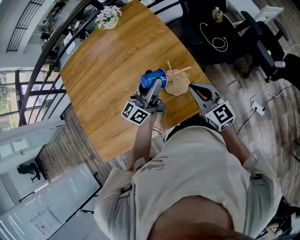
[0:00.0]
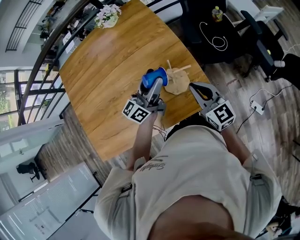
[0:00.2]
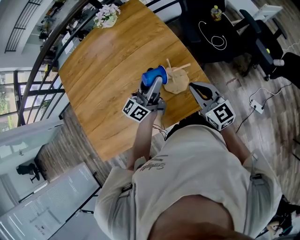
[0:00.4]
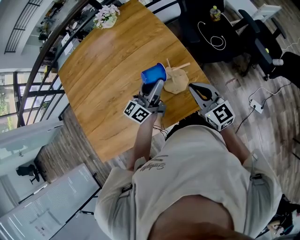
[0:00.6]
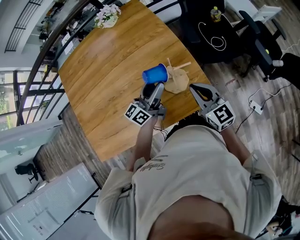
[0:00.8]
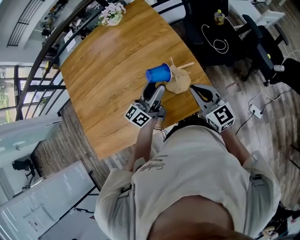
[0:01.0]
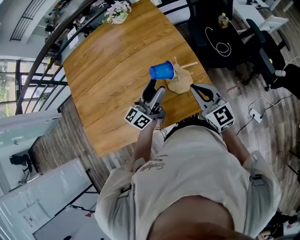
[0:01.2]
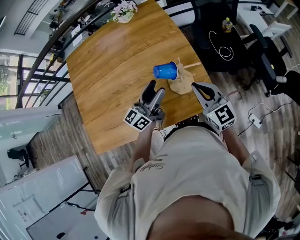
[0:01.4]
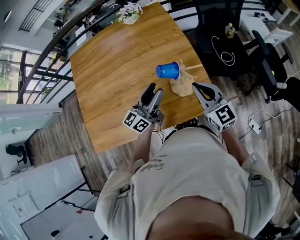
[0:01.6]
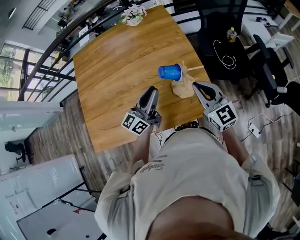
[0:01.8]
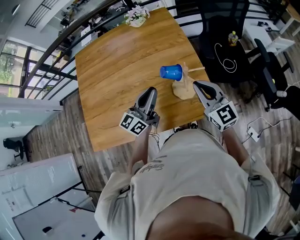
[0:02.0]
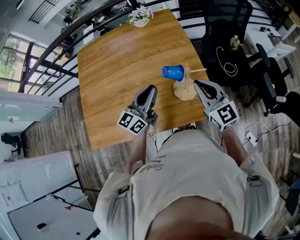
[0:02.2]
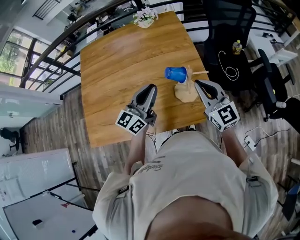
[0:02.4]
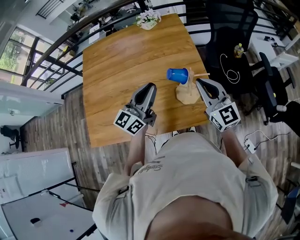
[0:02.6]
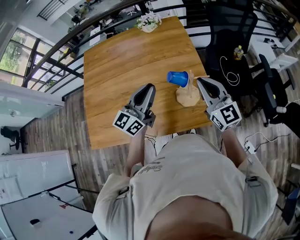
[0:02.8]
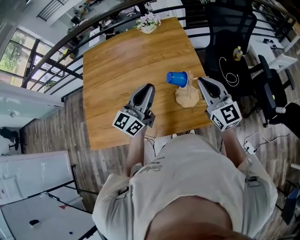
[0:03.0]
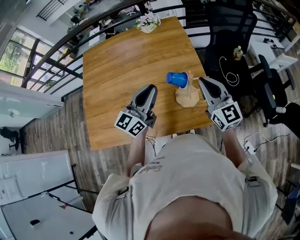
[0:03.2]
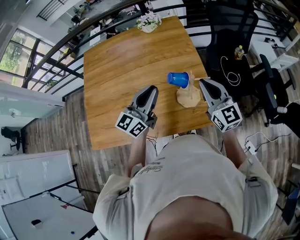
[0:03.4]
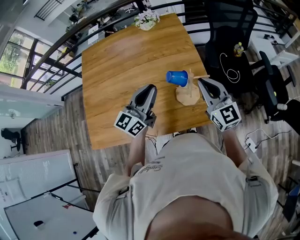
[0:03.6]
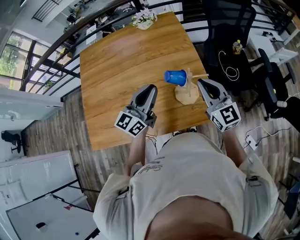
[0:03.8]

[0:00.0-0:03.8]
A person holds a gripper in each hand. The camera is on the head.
0:00.0 to 0:01.2: The left gripper heads backward, covering about 5 cm.
0:01.2 to 0:02.6: The left gripper goes approximately 10 cm upward and to the left, changes its angle by some 20 degrees, and closes up. The right gripper shifts approximately 10 cm upward.
0:02.6 to 0:03.8: The grippers stay close to where they were, moving slightly.

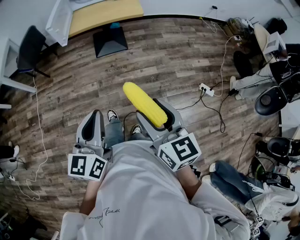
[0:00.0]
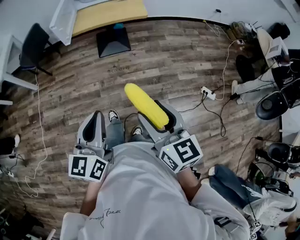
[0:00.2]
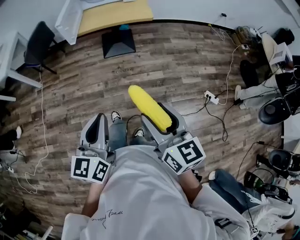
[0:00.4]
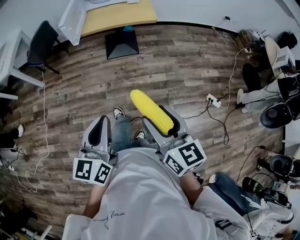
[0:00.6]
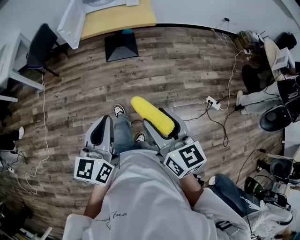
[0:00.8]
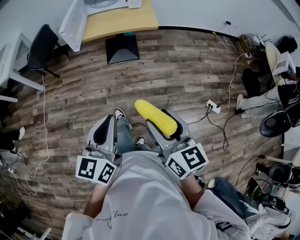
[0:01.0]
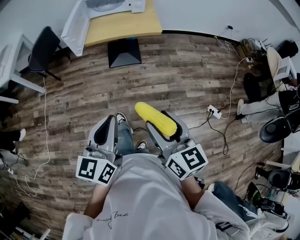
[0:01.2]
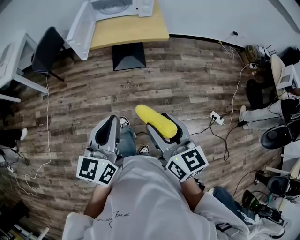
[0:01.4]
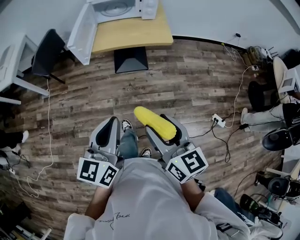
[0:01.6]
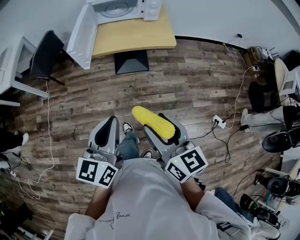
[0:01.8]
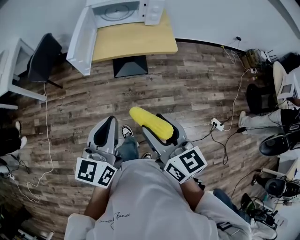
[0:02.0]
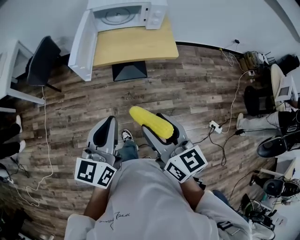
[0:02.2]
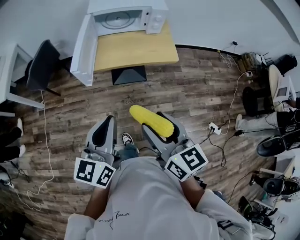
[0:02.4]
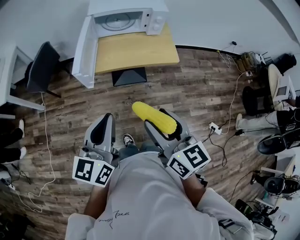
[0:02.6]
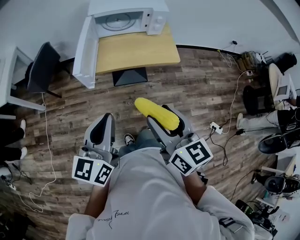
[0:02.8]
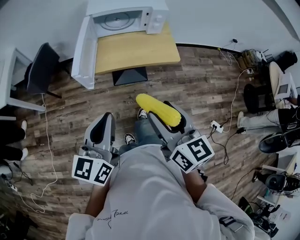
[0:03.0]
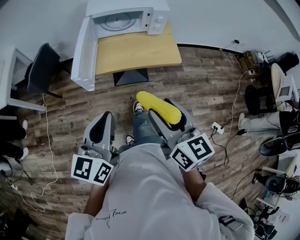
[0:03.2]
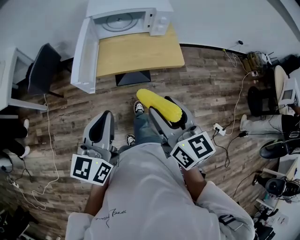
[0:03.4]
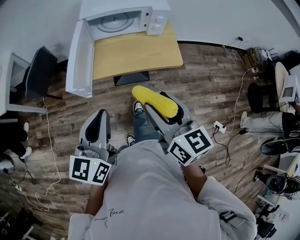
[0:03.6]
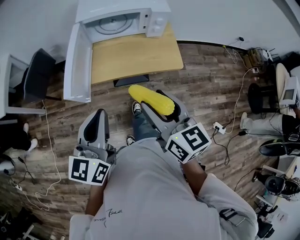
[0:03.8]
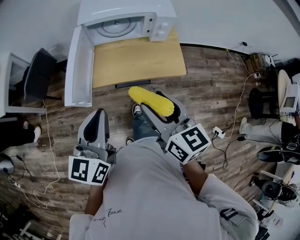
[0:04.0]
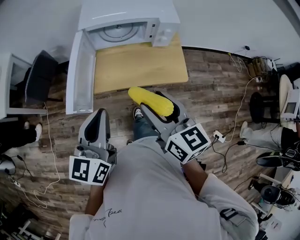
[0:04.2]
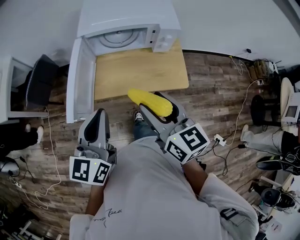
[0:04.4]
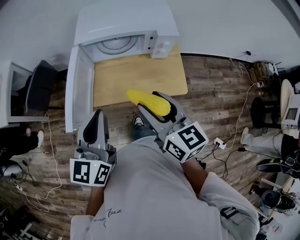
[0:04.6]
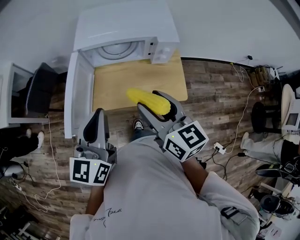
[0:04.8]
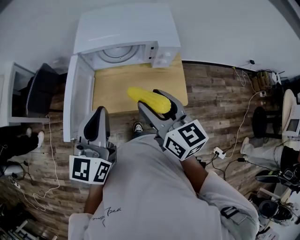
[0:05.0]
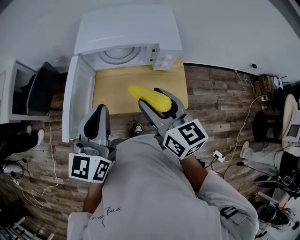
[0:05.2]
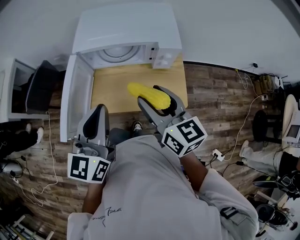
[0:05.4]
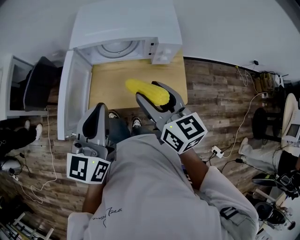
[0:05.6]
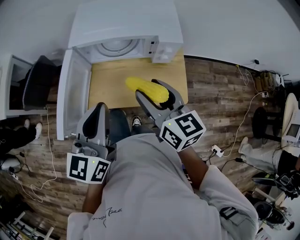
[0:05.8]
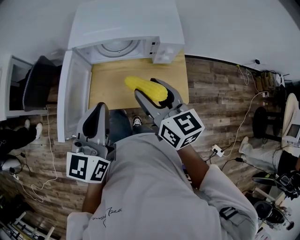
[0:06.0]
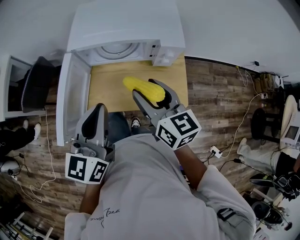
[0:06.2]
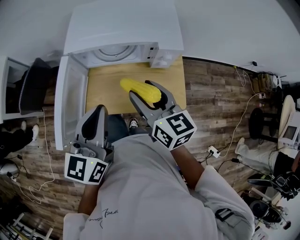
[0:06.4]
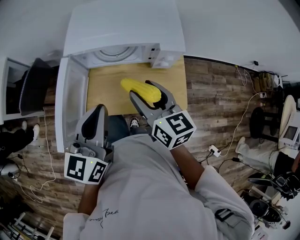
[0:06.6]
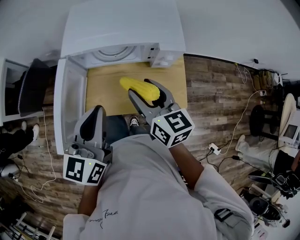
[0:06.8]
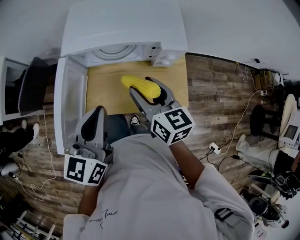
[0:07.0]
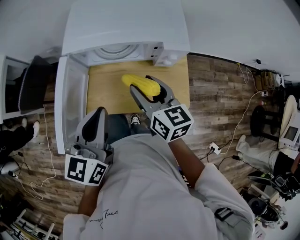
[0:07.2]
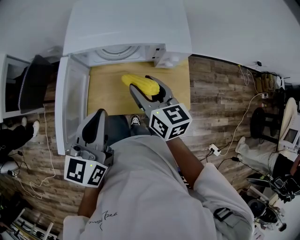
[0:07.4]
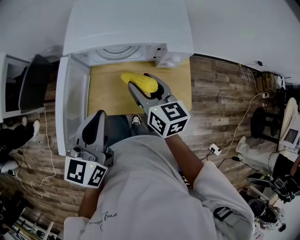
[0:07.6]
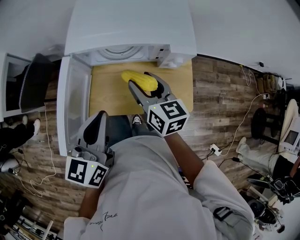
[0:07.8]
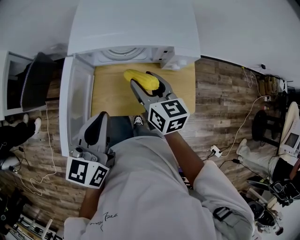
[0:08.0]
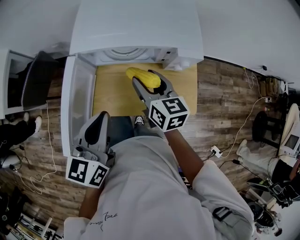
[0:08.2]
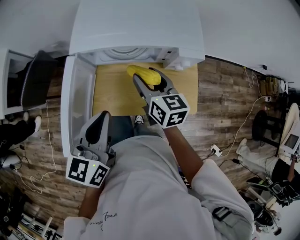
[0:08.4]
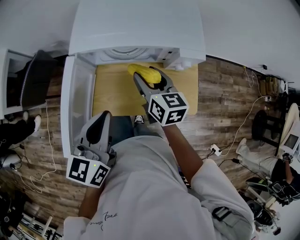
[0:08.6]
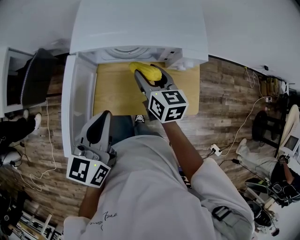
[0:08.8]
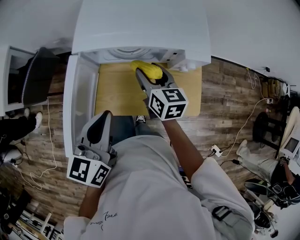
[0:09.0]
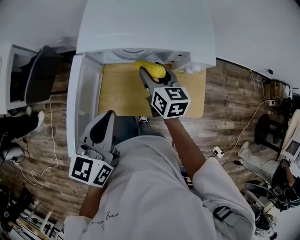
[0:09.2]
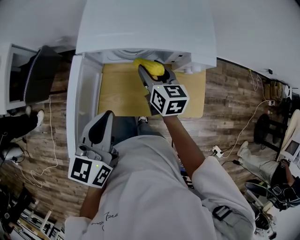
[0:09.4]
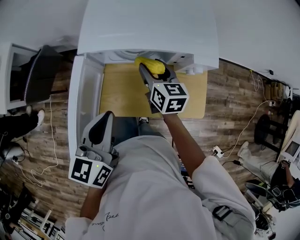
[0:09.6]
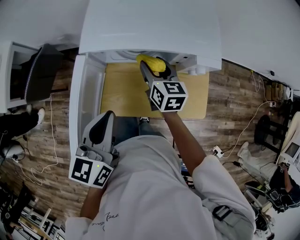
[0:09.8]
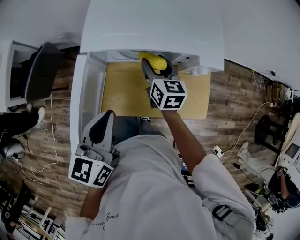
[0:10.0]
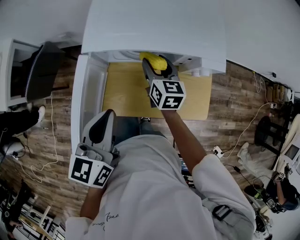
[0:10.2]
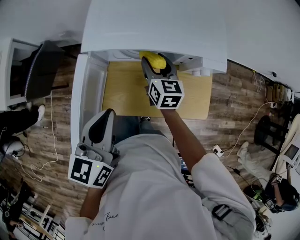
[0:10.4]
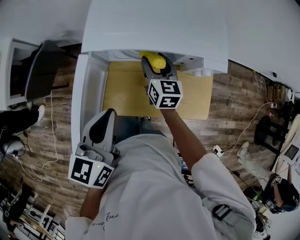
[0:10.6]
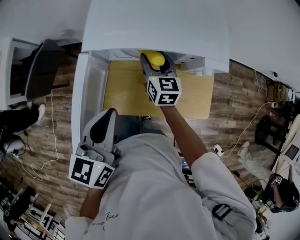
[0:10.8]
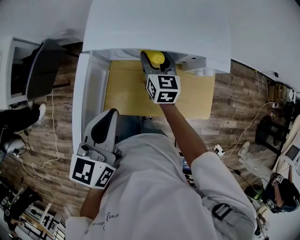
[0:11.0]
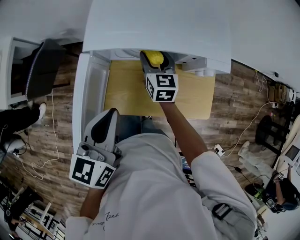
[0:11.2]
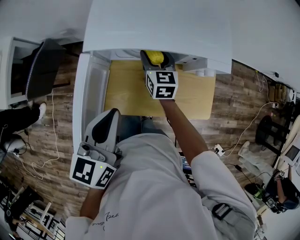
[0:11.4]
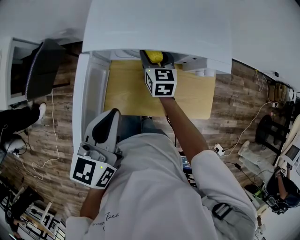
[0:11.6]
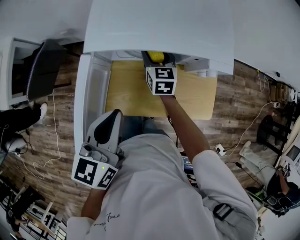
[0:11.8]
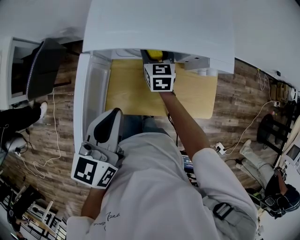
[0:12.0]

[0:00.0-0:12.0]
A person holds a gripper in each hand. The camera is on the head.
0:00.0 to 0:01.6: Both grippers move forward, some 15 cm.
0:01.6 to 0:03.0: The right gripper moves forward, some 20 cm. The left gripper moves forward and to the left, roughly 20 cm.
0:03.0 to 0:04.4: Both grippers travel together forward, roughly 25 cm.
0:04.4 to 0:06.0: The left gripper moves forward and to the right, about 10 cm. Meanwhile the right gripper shifts some 15 cm forward.
0:06.0 to 0:07.6: The right gripper shifts about 10 cm forward and downward, while the left gripper ends up roughly 5 cm from where it was.
0:07.6 to 0:09.0: The right gripper heads forward and downward, covering approximately 10 cm.
0:09.0 to 0:10.4: The right gripper shifts about 5 cm forward.
0:10.4 to 0:12.0: The right gripper goes about 5 cm forward.

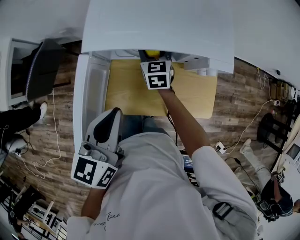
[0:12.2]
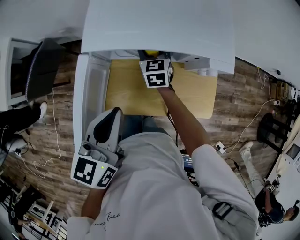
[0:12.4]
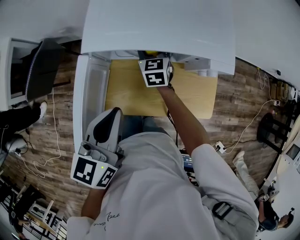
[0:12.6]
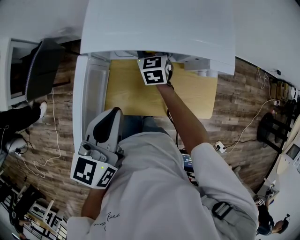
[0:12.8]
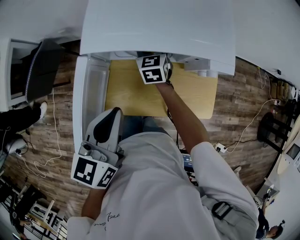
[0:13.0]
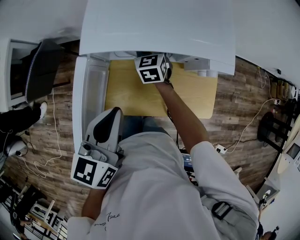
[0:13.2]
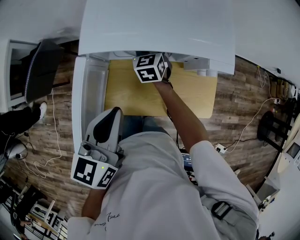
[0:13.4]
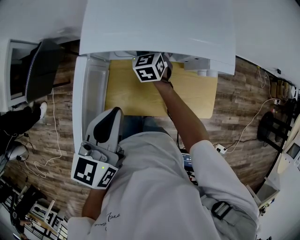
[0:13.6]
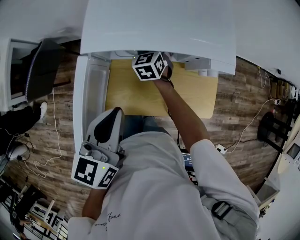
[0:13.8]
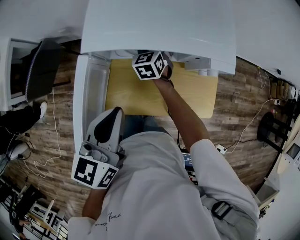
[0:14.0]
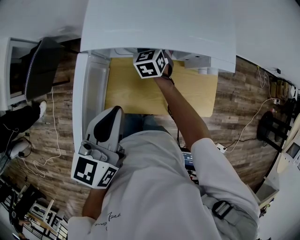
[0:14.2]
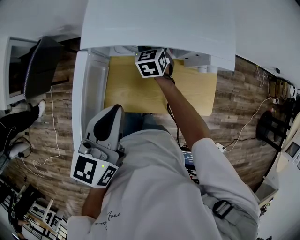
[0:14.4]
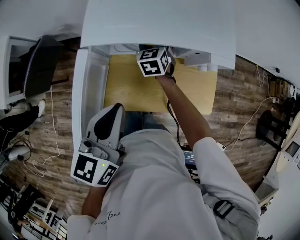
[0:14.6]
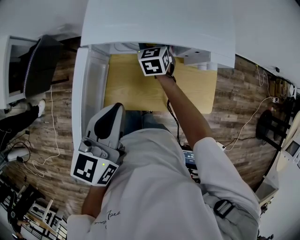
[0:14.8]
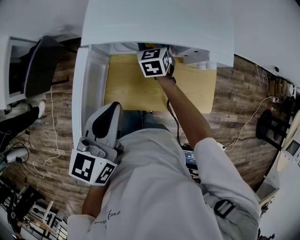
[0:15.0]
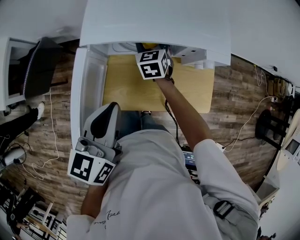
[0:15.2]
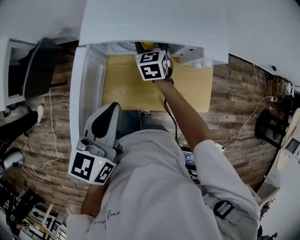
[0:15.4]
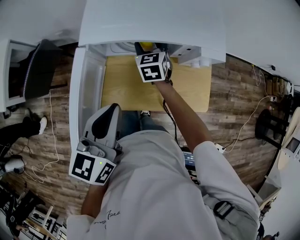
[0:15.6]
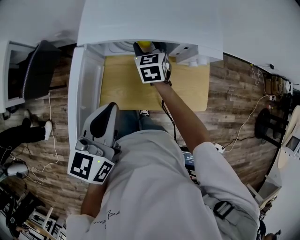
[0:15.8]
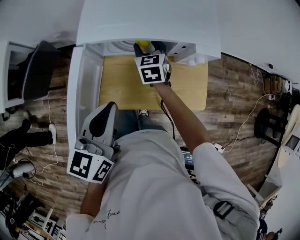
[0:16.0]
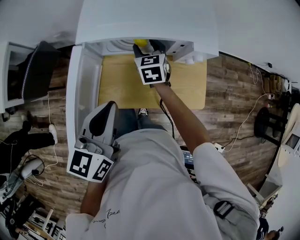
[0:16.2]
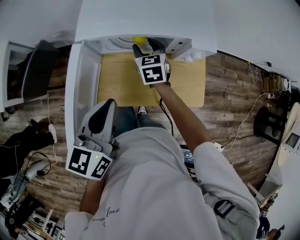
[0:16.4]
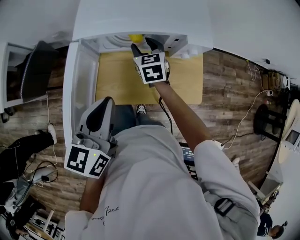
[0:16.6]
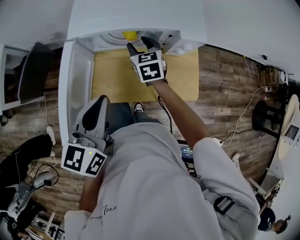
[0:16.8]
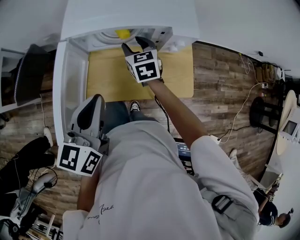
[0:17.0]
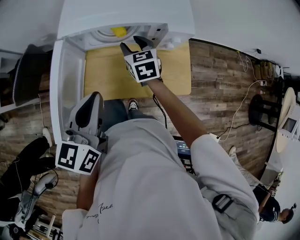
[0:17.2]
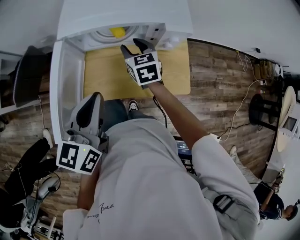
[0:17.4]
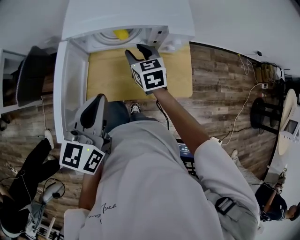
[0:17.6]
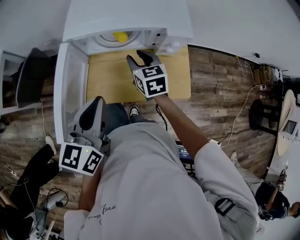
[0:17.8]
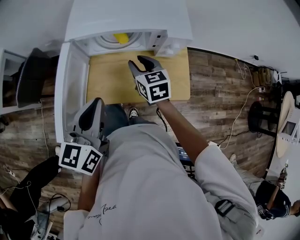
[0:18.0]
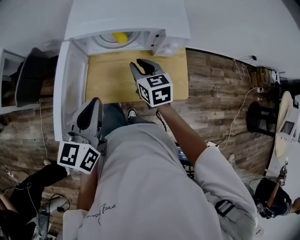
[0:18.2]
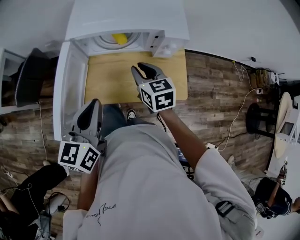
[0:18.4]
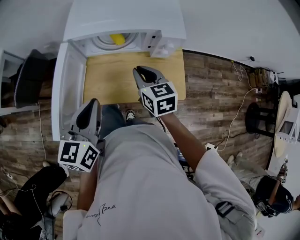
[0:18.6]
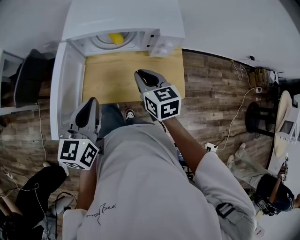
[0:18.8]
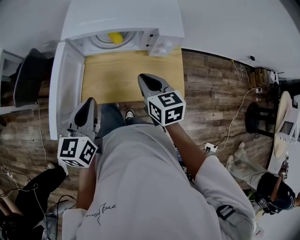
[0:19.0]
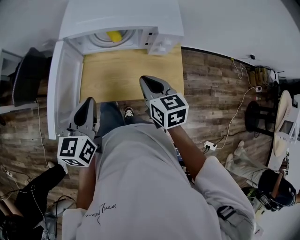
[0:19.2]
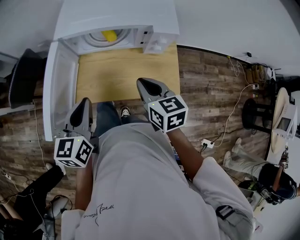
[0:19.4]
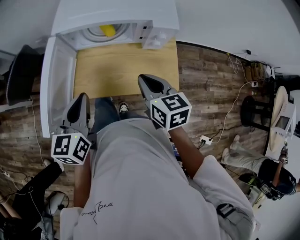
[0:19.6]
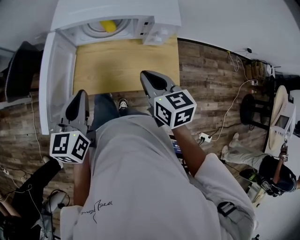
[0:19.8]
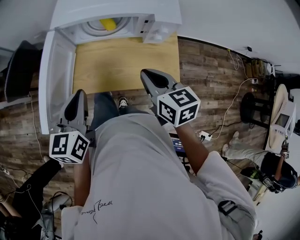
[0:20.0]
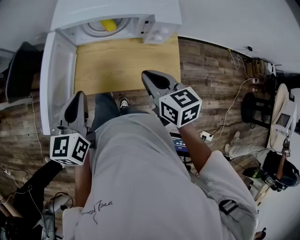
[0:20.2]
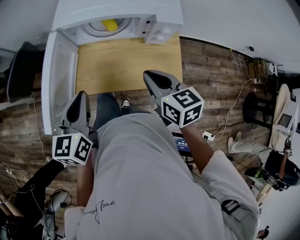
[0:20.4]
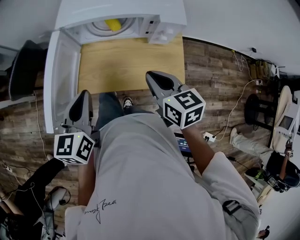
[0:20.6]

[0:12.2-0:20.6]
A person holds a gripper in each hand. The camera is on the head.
0:12.2 to 0:15.0: There are only small adjustments of the grippers.
0:15.0 to 0:16.4: The right gripper travels backward by some 5 cm.
0:16.4 to 0:17.8: The right gripper moves backward, approximately 10 cm.
0:17.8 to 0:19.2: The right gripper moves backward, some 10 cm, and closes its fingers. The left gripper moves roughly 5 cm.
0:19.2 to 0:20.6: The grippers stay close to where they were, moving slightly.
